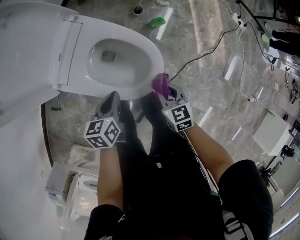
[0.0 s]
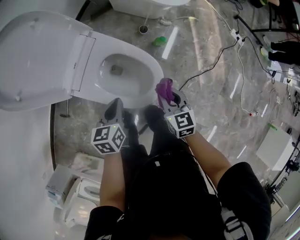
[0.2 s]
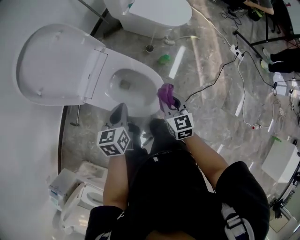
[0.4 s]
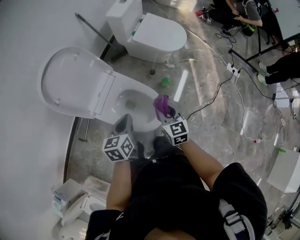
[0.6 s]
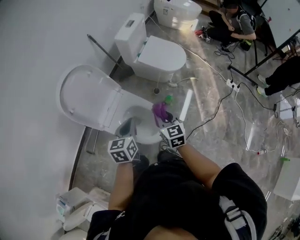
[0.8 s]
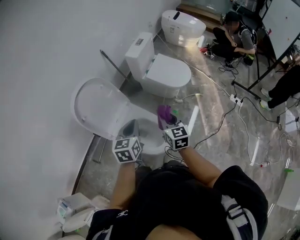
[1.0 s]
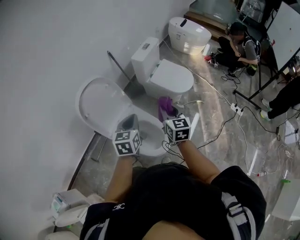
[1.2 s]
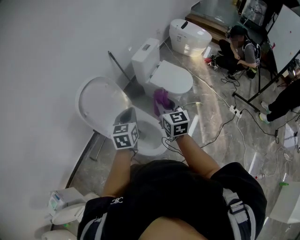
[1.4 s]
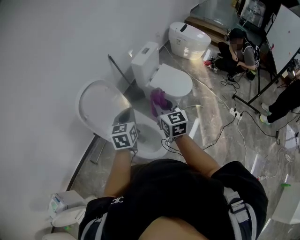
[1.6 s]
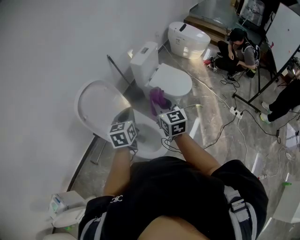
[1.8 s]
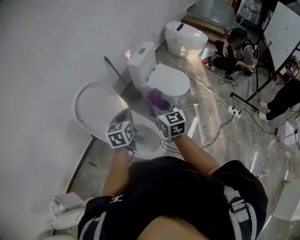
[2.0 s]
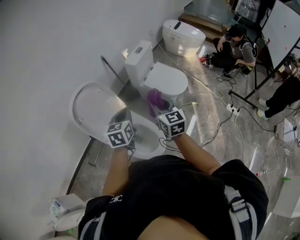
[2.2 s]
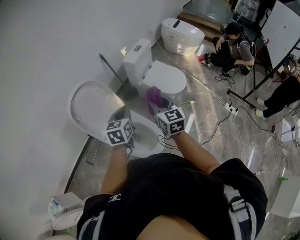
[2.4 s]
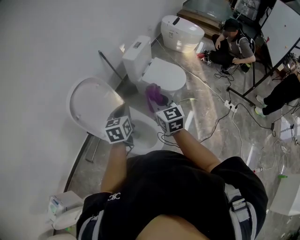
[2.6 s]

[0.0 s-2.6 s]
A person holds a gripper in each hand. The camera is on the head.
0.0 to 1.2 s: The two grippers go some 50 cm upward. The left gripper turns by about 40 degrees. The right gripper points its fingers about 30 degrees further upward.
1.2 to 2.6 s: The right gripper moves upward, roughly 5 cm. Meanwhile the left gripper shifts roughly 5 cm forward.

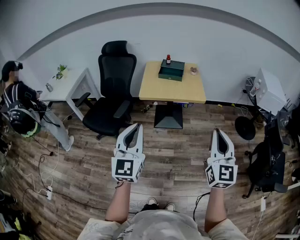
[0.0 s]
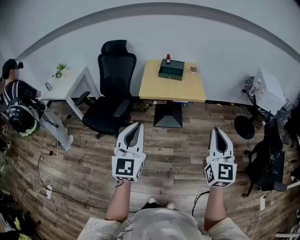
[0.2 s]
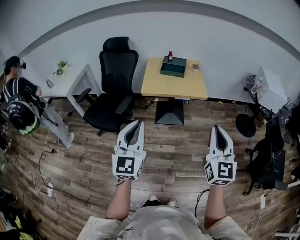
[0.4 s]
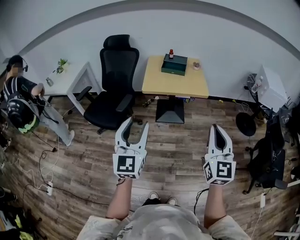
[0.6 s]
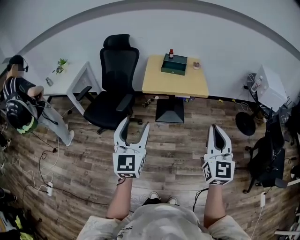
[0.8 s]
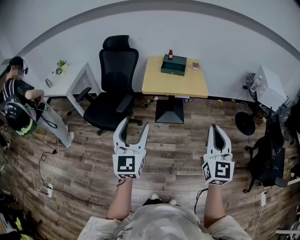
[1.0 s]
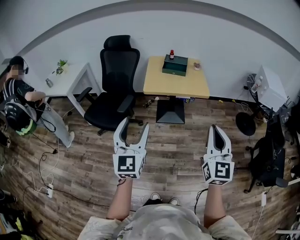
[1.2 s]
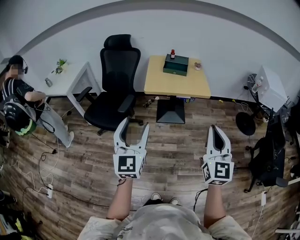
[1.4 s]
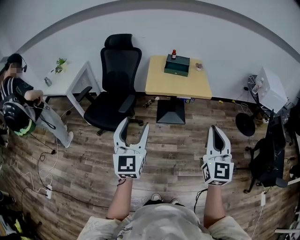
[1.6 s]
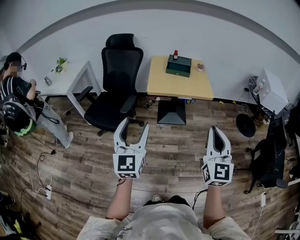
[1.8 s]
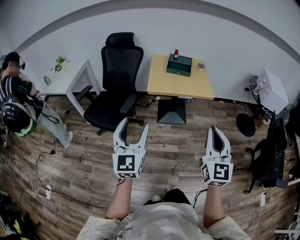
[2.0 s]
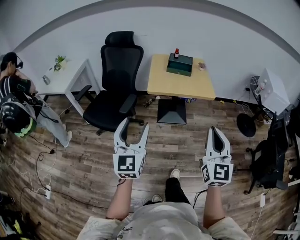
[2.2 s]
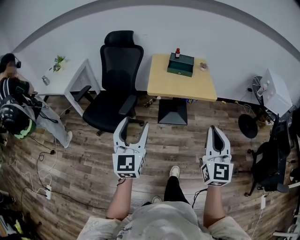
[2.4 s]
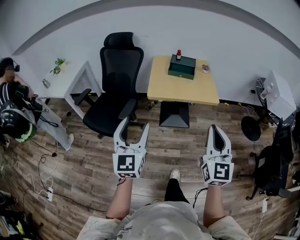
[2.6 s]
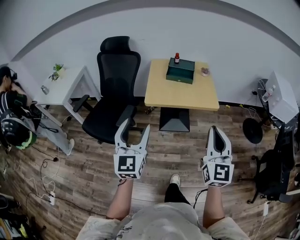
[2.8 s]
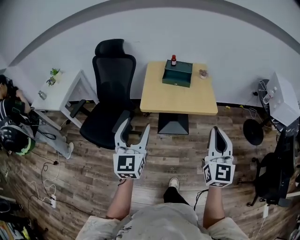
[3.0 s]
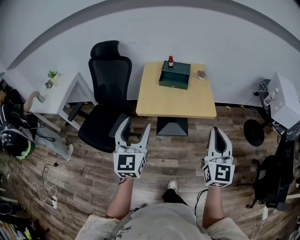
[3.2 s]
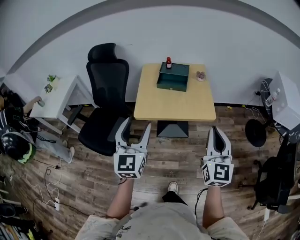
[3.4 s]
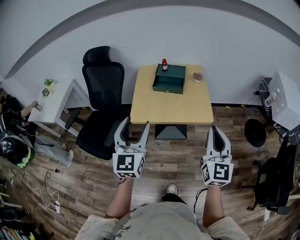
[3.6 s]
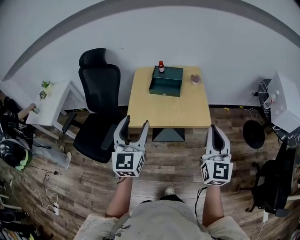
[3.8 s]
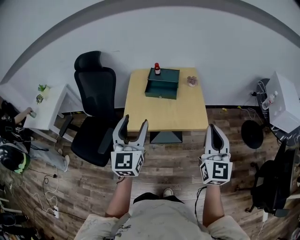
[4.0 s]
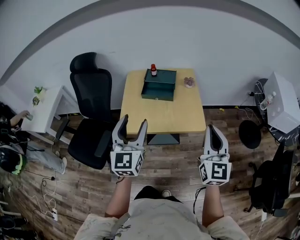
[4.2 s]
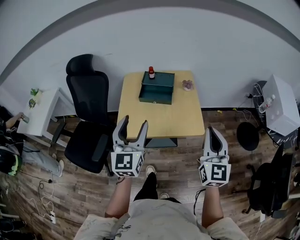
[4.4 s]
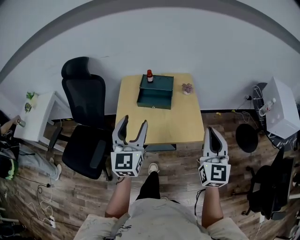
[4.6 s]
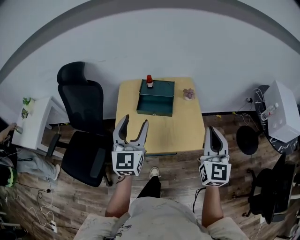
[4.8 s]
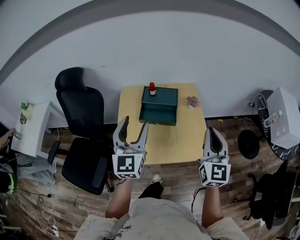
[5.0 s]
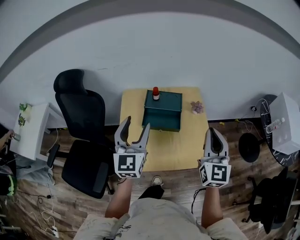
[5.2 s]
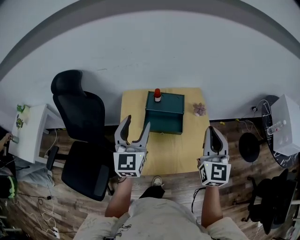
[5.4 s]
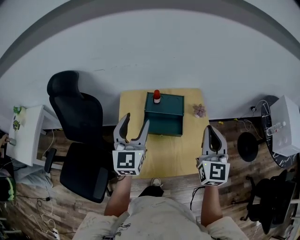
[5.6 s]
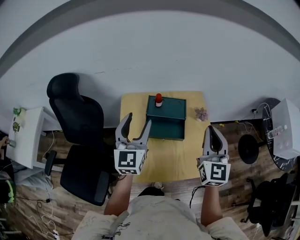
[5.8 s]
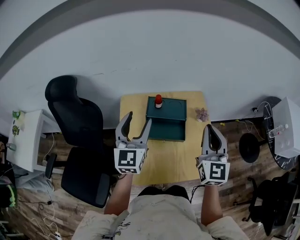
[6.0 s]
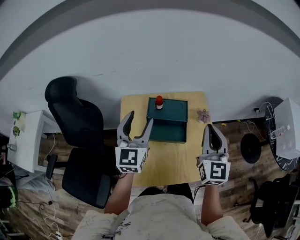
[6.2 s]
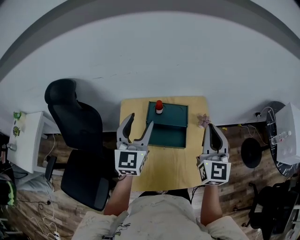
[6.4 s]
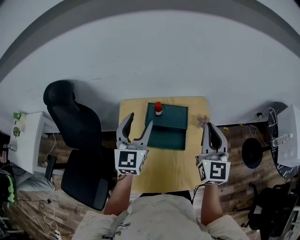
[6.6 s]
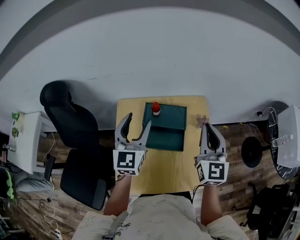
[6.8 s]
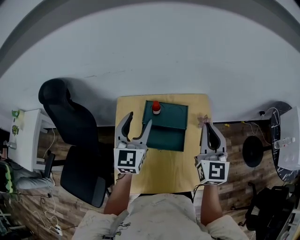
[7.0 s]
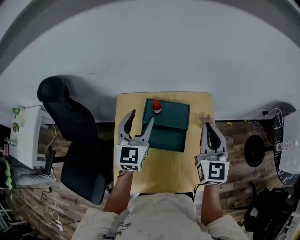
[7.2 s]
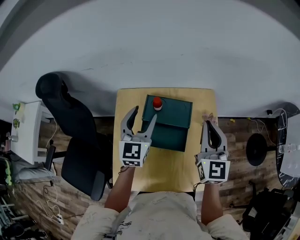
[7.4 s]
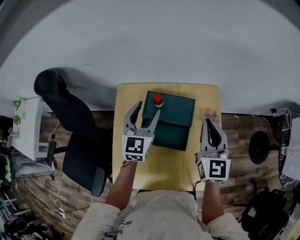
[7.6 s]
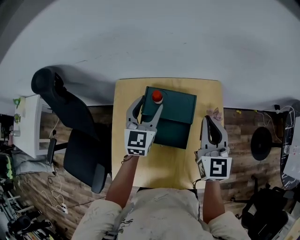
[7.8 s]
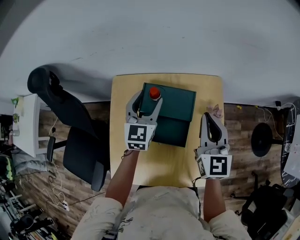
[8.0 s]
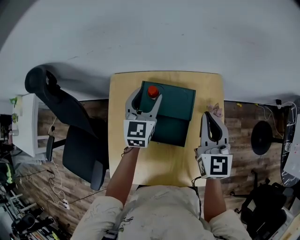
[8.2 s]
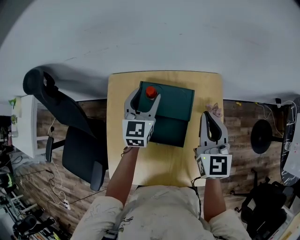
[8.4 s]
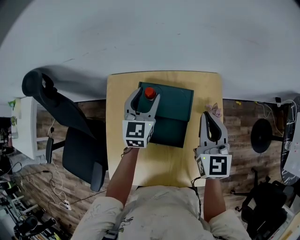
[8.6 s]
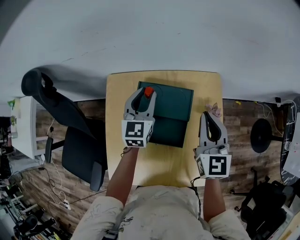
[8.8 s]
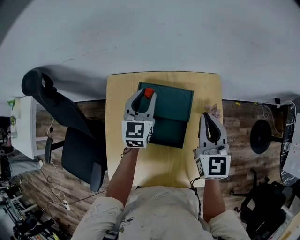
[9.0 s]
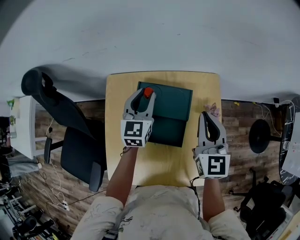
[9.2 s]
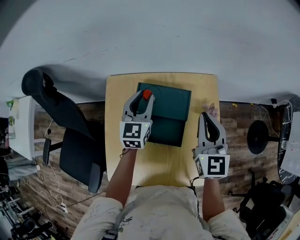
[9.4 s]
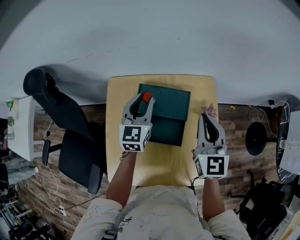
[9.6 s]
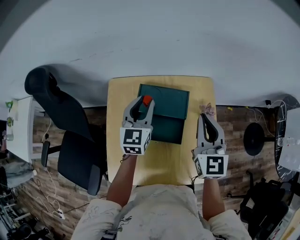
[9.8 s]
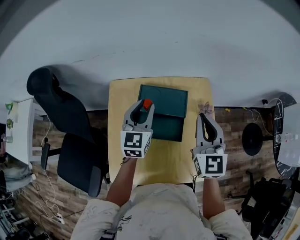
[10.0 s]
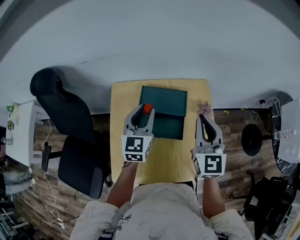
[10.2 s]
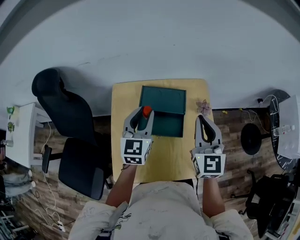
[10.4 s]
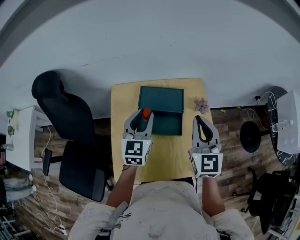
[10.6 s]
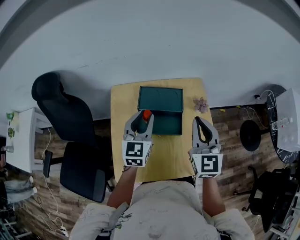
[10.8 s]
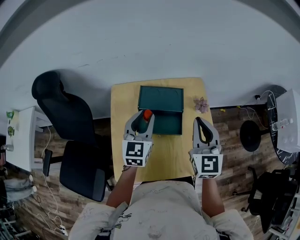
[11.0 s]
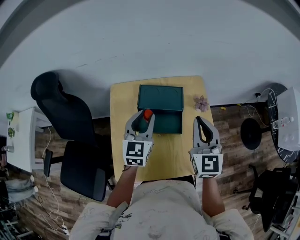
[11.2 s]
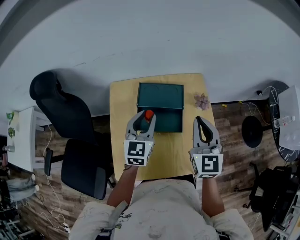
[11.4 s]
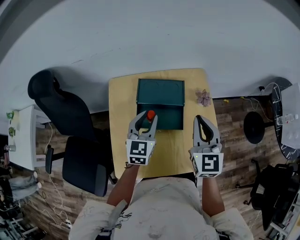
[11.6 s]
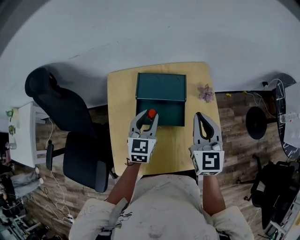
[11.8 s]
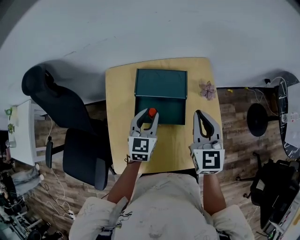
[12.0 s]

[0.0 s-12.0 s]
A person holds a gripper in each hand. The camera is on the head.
0.0 to 1.6 s: The grippers both shift to the left by about 10 cm. The left gripper opens.
1.6 to 3.0 s: The grippers both shift forward by some 25 cm.
3.0 to 4.4 s: Both grippers travel together forward and to the right, roughly 25 cm.
4.4 to 6.0 s: The right gripper travels forward and to the left by about 35 cm. The left gripper moves forward, approximately 35 cm.
6.0 to 7.6 s: Both grippers move forward and downward, about 20 cm.
7.6 to 9.0 s: The right gripper shifts by some 5 cm. The left gripper is displaced downward and forward by roughly 10 cm, and closes.
9.0 to 10.4 s: The two grippers go some 15 cm backward and upward.
10.4 to 12.0 s: The left gripper heads downward, covering roughly 10 cm, while the right gripper moves downward, some 5 cm.

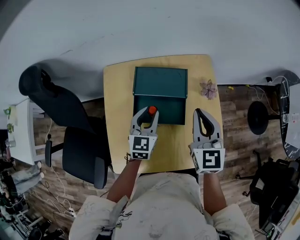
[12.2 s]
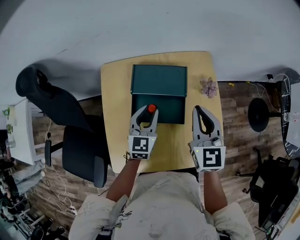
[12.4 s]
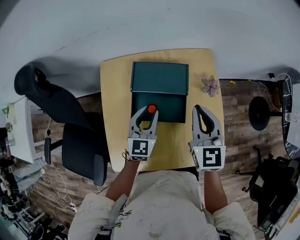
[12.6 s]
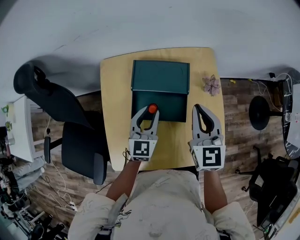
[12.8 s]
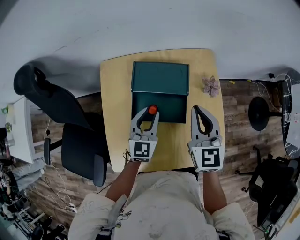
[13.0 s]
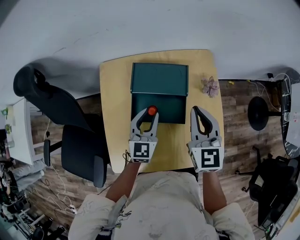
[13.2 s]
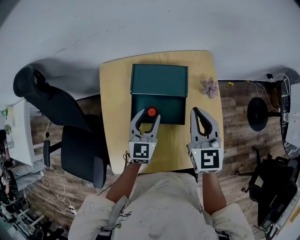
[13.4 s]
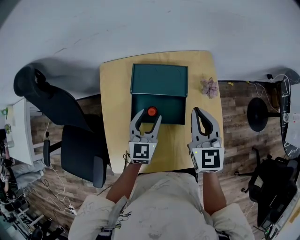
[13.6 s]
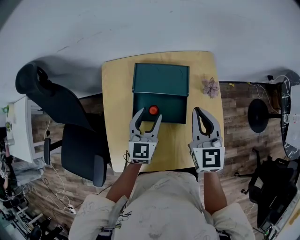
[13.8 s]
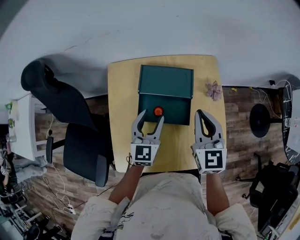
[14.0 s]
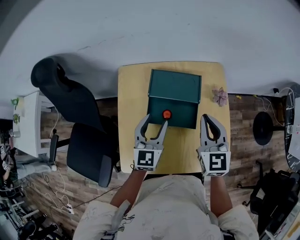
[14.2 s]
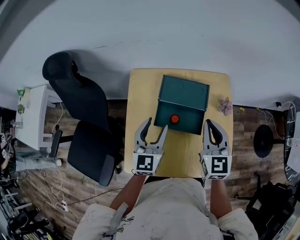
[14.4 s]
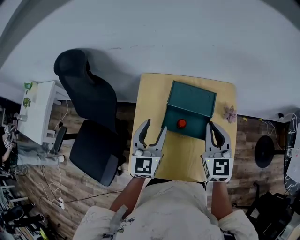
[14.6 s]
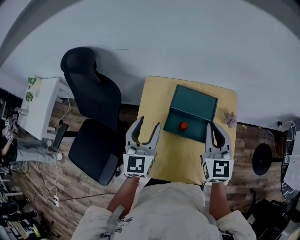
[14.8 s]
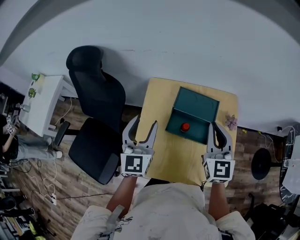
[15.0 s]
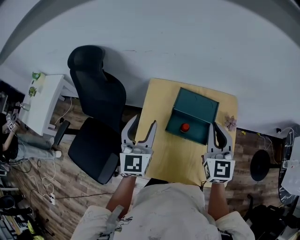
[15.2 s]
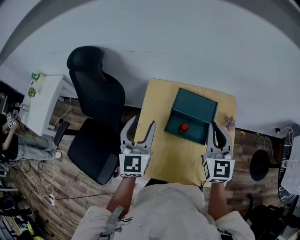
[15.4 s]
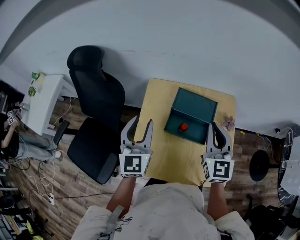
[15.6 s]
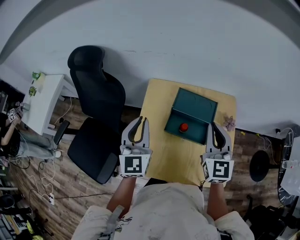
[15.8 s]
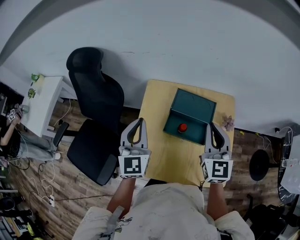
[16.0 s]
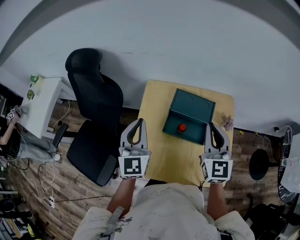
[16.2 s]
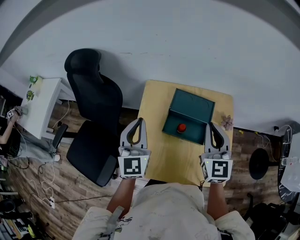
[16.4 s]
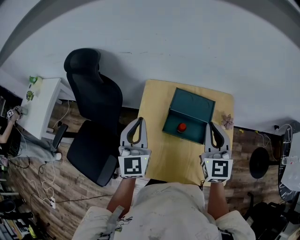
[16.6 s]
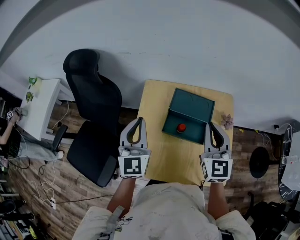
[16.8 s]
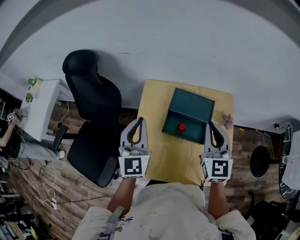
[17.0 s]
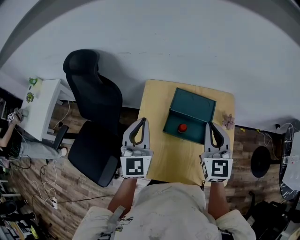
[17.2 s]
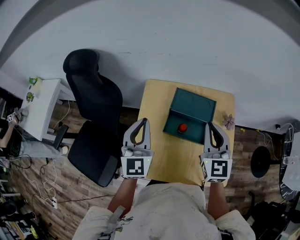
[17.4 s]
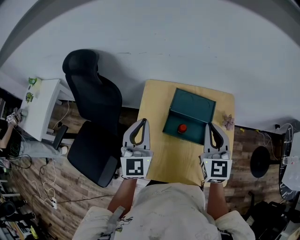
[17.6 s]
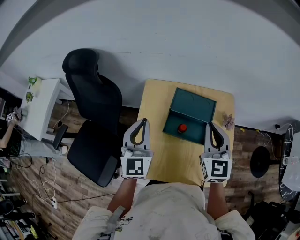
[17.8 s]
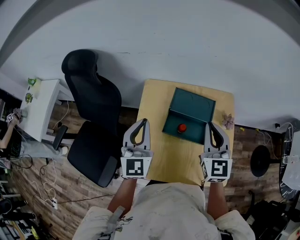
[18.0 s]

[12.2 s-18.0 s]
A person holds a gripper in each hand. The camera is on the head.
12.2 to 13.6 s: The left gripper opens.
13.6 to 15.0 s: The right gripper travels upward and to the left by approximately 10 cm; the left gripper is displaced upward and to the left by some 25 cm, and changes its angle by approximately 20 degrees.
15.0 to 16.6 s: The left gripper closes.
16.6 to 18.0 s: The grippers make only small movements.

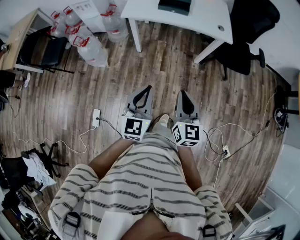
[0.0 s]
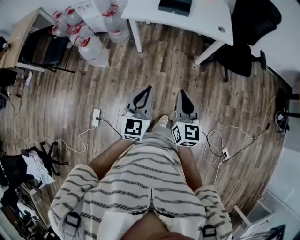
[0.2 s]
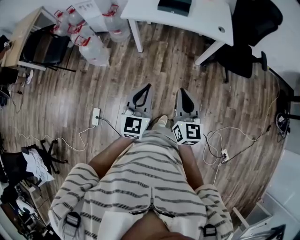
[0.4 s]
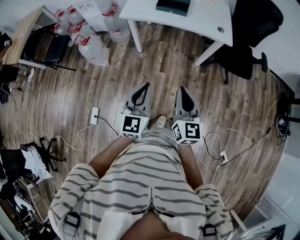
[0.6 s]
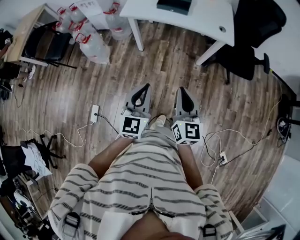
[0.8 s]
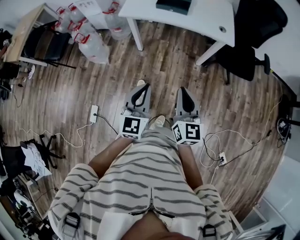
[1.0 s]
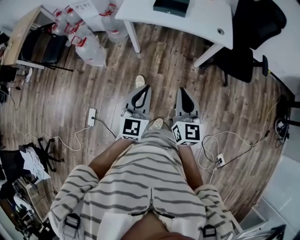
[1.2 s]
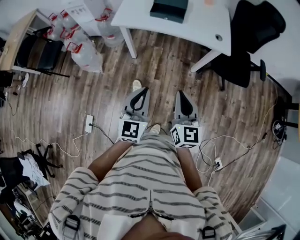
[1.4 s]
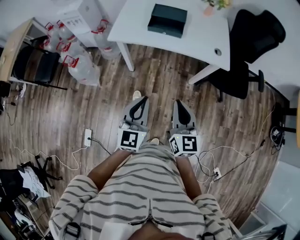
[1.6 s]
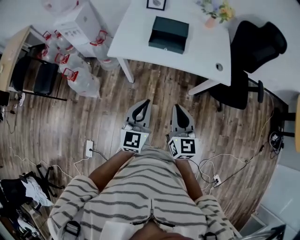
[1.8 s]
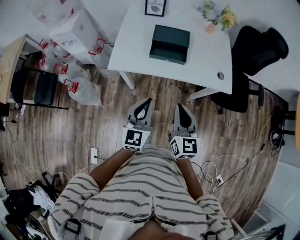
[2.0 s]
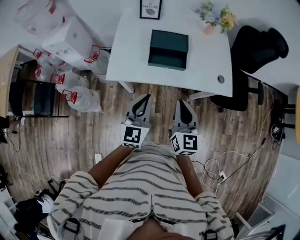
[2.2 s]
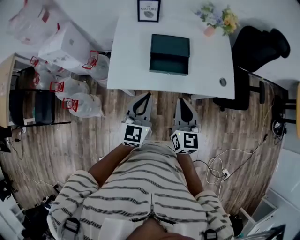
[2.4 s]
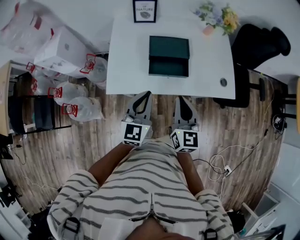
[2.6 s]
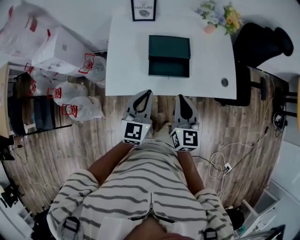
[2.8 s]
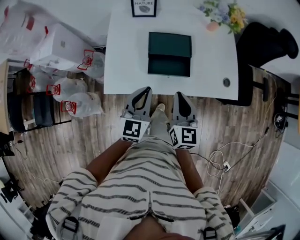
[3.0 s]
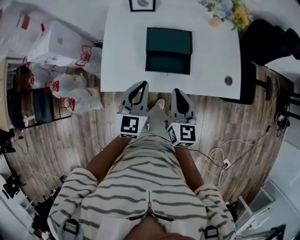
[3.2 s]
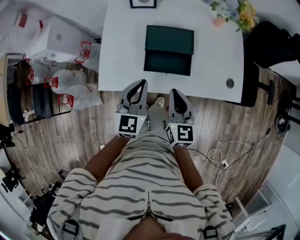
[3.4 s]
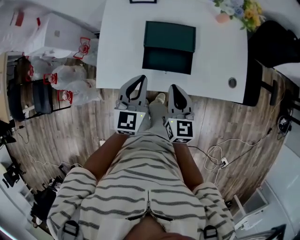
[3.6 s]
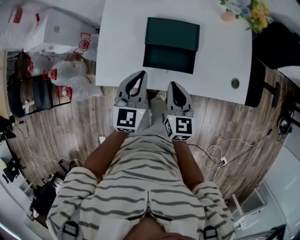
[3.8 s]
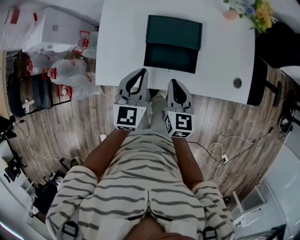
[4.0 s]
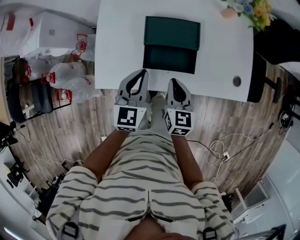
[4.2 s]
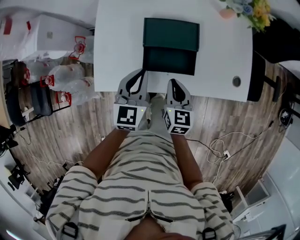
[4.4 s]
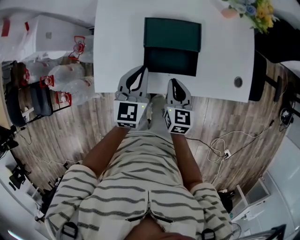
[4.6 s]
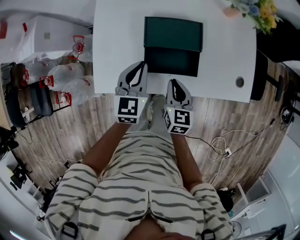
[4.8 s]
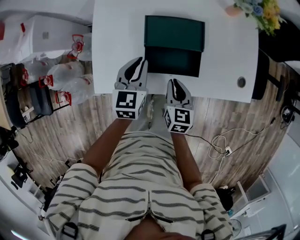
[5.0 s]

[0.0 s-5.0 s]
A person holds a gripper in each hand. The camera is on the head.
0.0 to 1.6 s: Both grippers travel together forward, about 20 cm.
1.6 to 3.4 s: Both grippers are carried forward, approximately 40 cm.
3.4 to 5.0 s: The right gripper shifts some 15 cm downward and forward; the left gripper travels forward and downward by some 15 cm.
